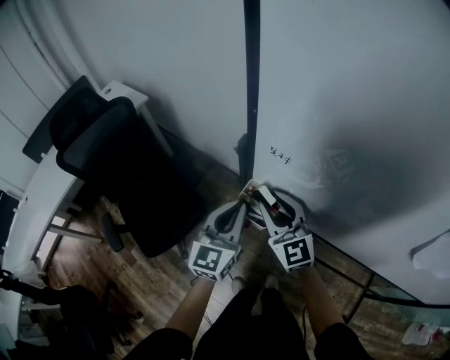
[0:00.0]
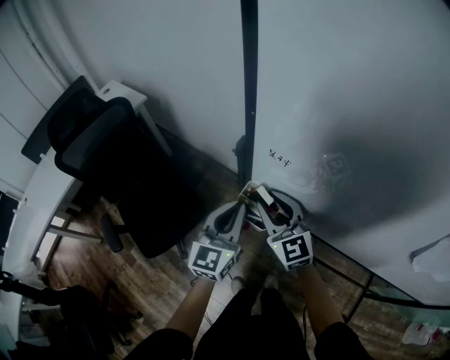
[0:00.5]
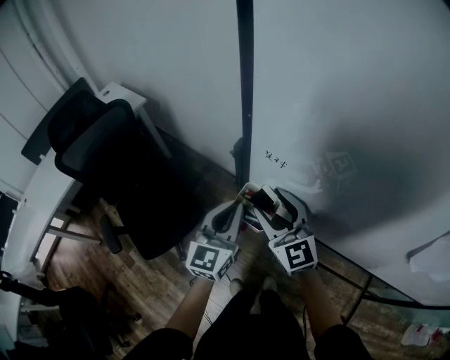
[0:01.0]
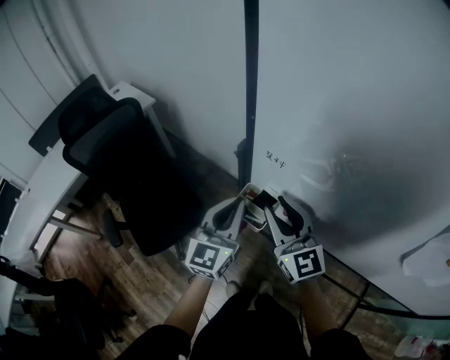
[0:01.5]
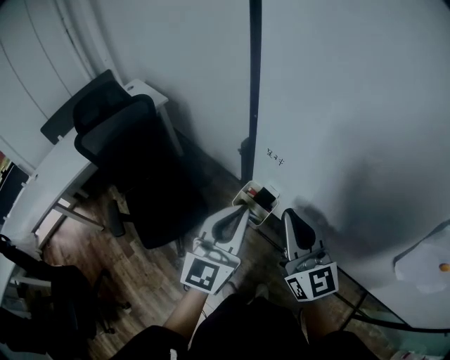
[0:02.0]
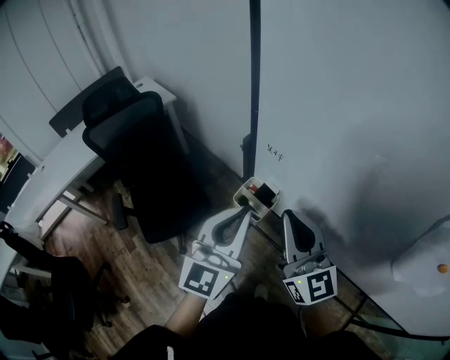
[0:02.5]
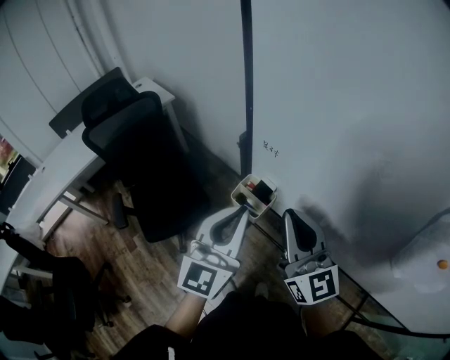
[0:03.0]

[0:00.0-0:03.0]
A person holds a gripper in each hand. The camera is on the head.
0.0 to 1.5 s: The right gripper shifts about 5 cm upward, and opens and closes again.
1.5 to 3.0 s: The grippers both shift backward and upward by approximately 10 cm. The right gripper closes up.

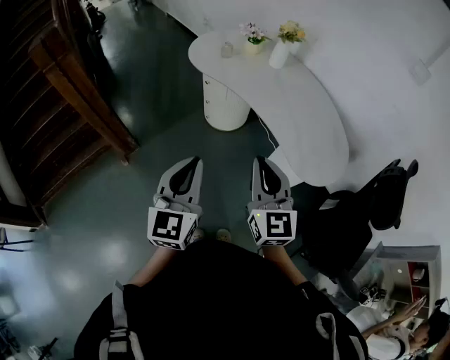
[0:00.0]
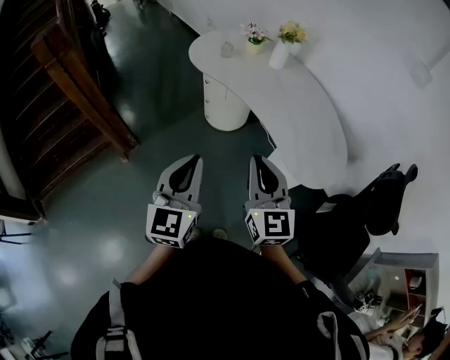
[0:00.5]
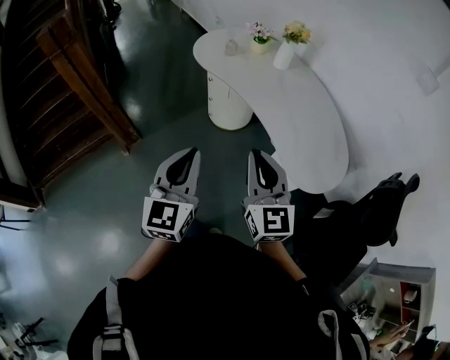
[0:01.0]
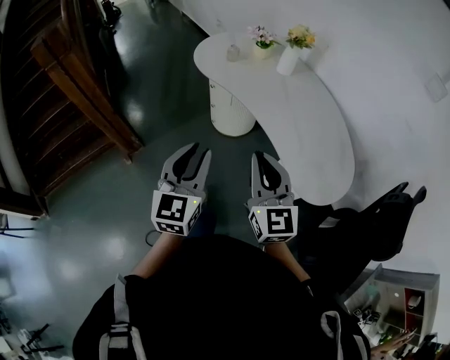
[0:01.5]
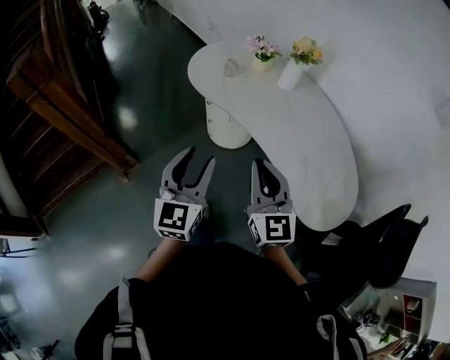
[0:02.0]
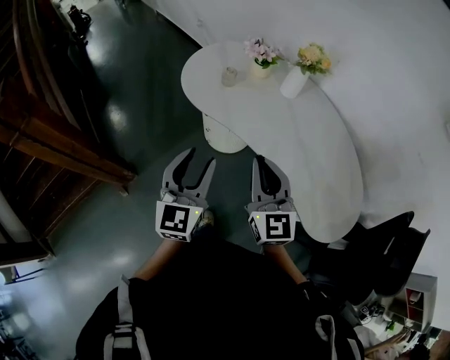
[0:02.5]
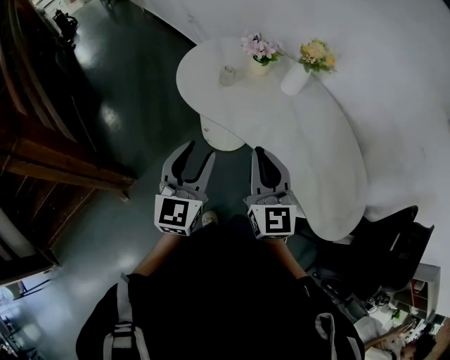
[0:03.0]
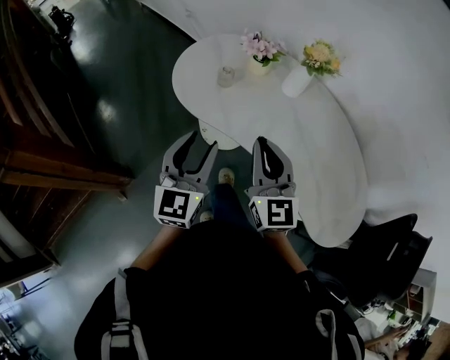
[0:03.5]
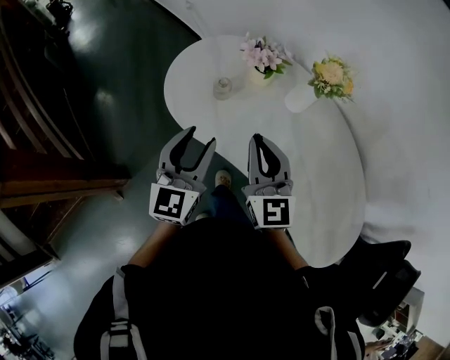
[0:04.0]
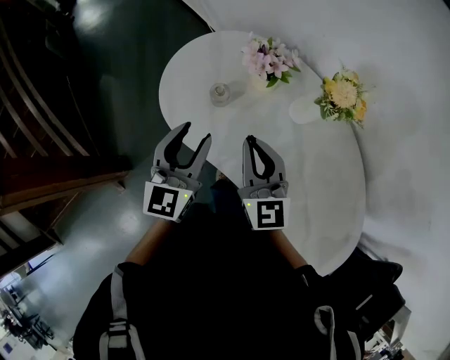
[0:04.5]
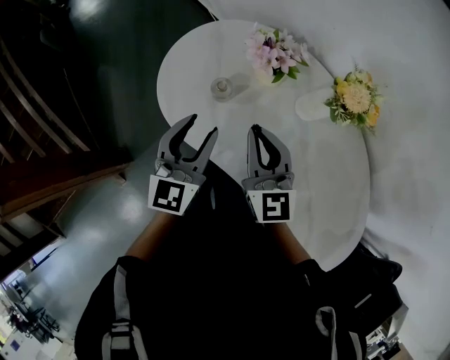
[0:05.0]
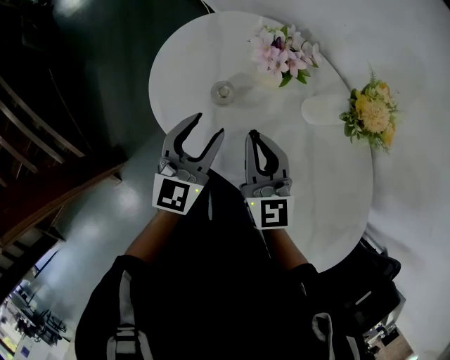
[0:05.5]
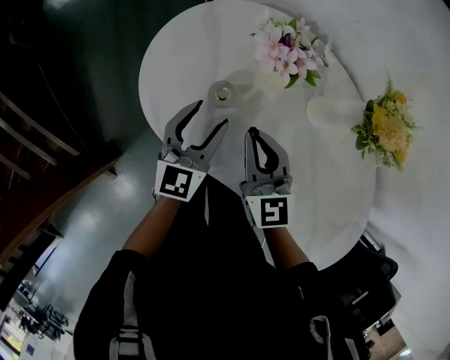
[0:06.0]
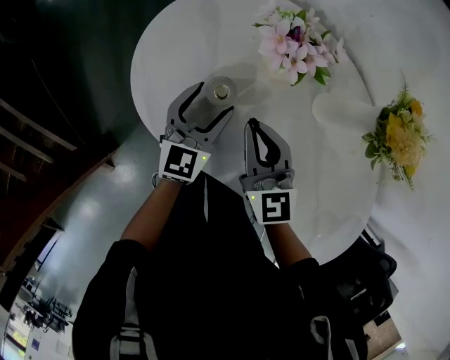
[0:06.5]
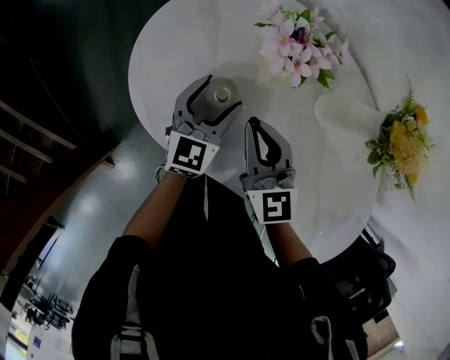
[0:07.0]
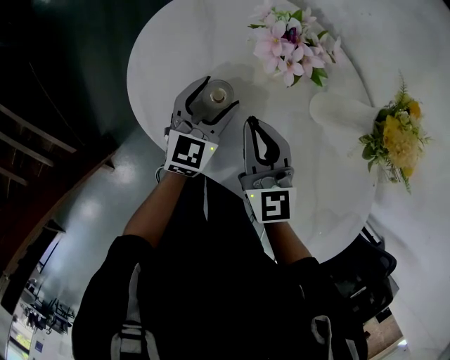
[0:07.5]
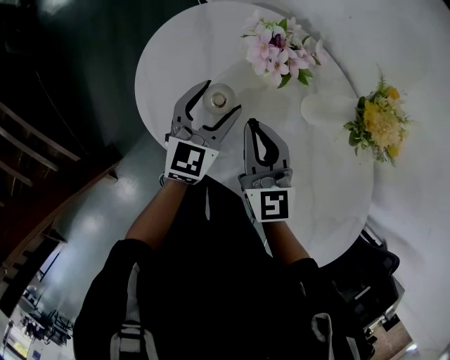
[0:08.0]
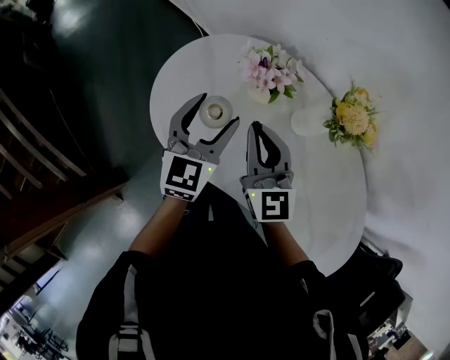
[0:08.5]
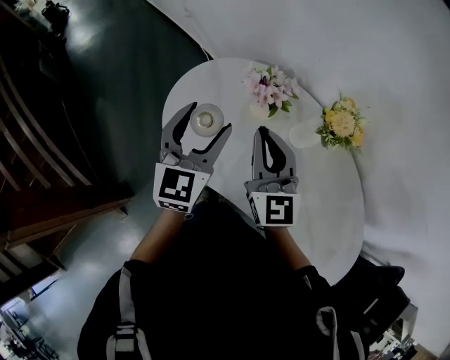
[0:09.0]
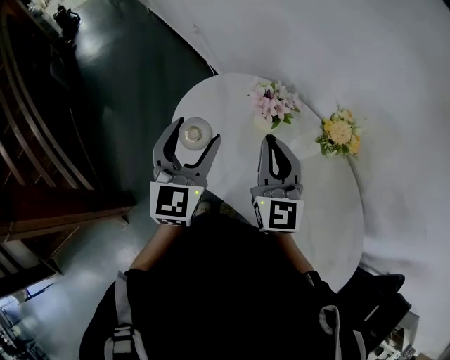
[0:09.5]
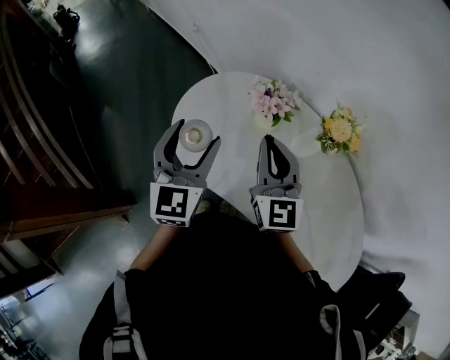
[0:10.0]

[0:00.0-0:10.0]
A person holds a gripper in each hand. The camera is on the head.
0.0 to 2.0 s: The two grippers go about 20 cm forward. The left gripper opens.
2.0 to 4.0 s: The grippers both shift forward by some 35 cm.
4.0 to 6.0 s: Both grippers move forward and downward, some 25 cm.
6.0 to 8.0 s: The left gripper travels forward by approximately 5 cm.
8.0 to 10.0 s: The left gripper shifts approximately 25 cm upward, backward and to the left; the right gripper travels upward by about 15 cm.

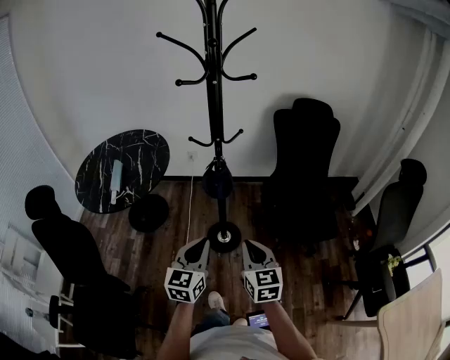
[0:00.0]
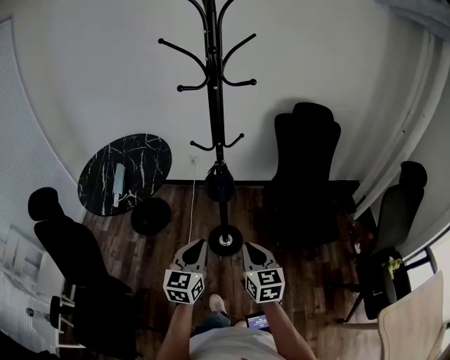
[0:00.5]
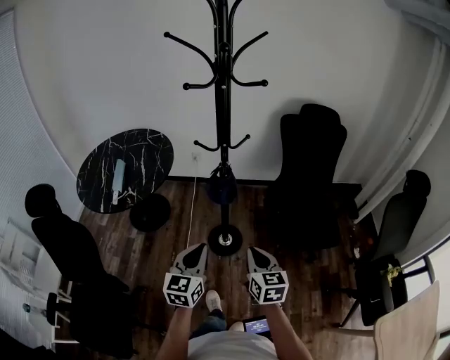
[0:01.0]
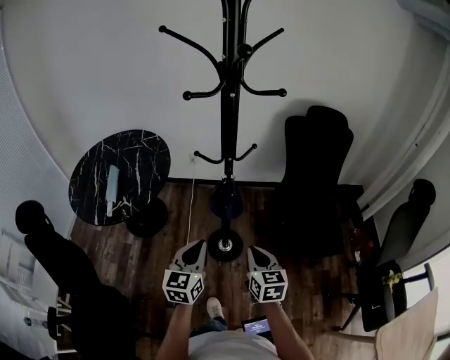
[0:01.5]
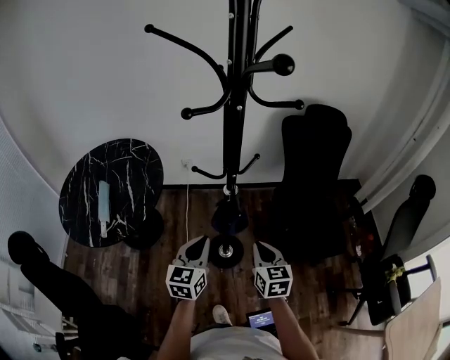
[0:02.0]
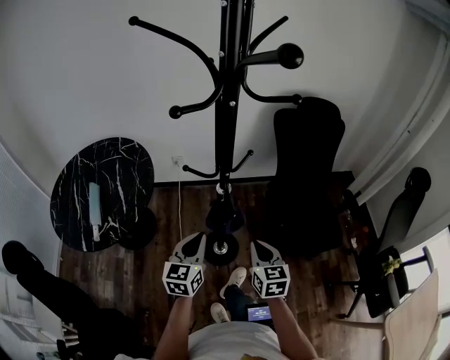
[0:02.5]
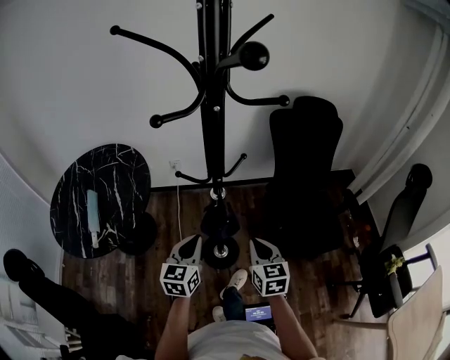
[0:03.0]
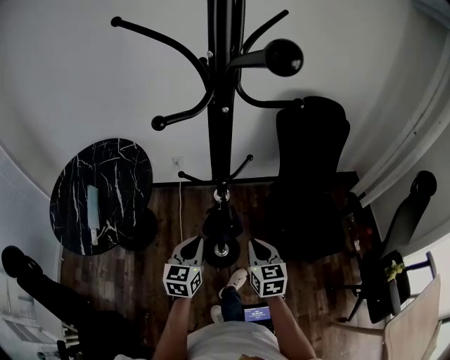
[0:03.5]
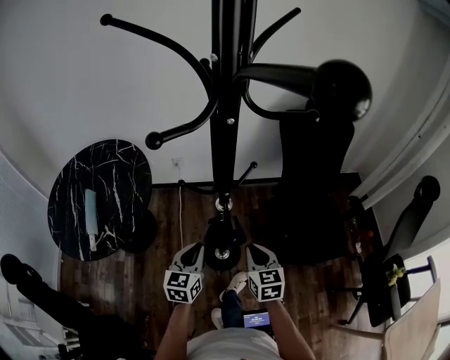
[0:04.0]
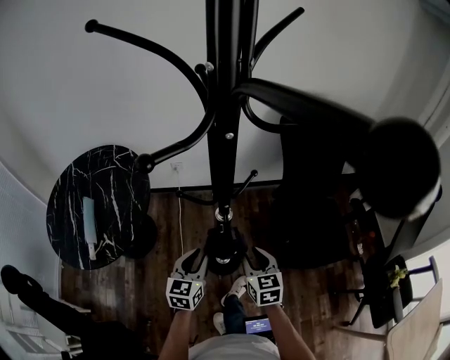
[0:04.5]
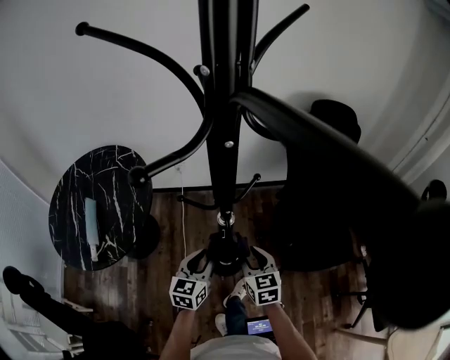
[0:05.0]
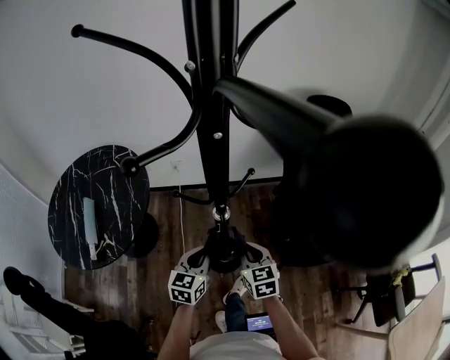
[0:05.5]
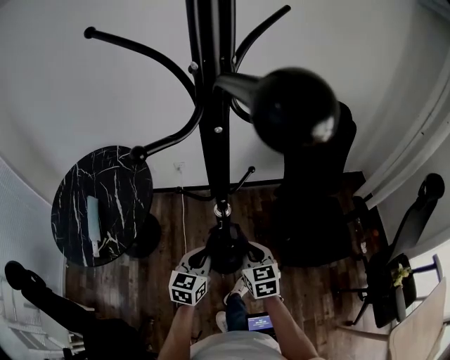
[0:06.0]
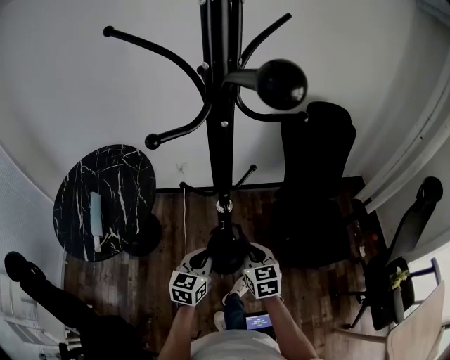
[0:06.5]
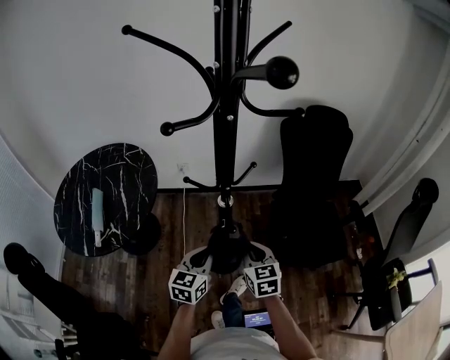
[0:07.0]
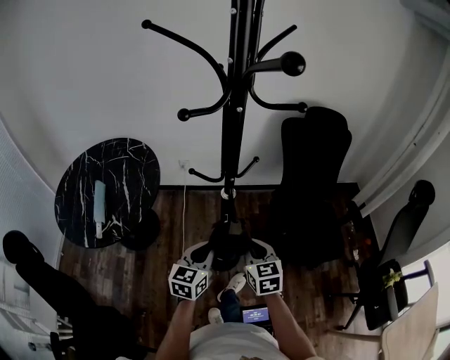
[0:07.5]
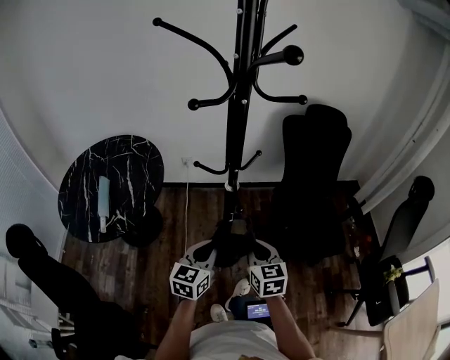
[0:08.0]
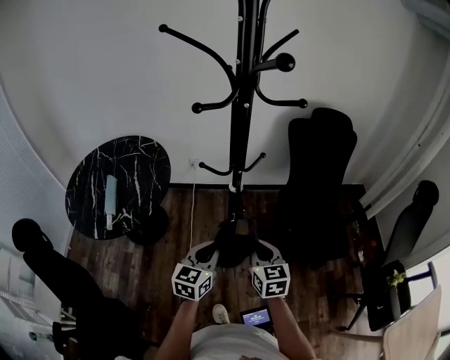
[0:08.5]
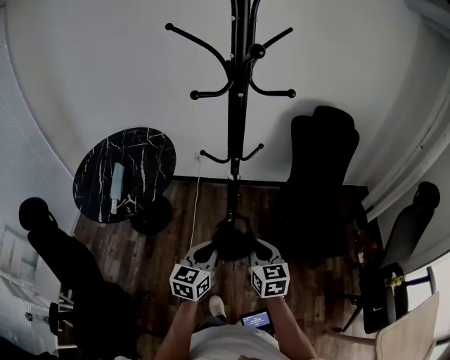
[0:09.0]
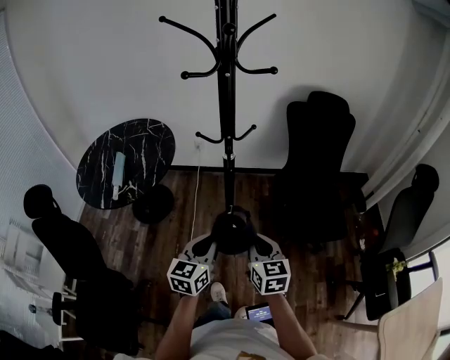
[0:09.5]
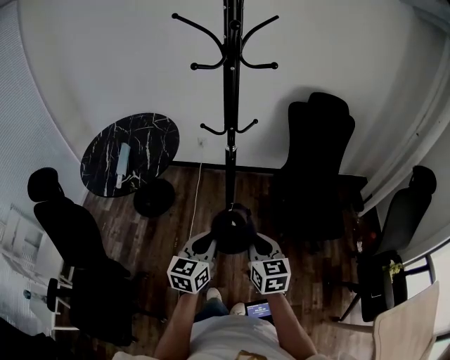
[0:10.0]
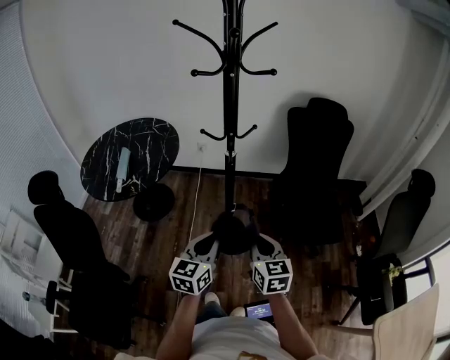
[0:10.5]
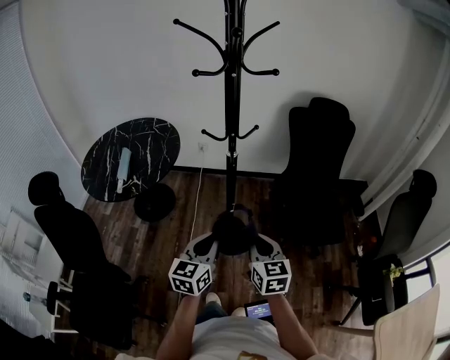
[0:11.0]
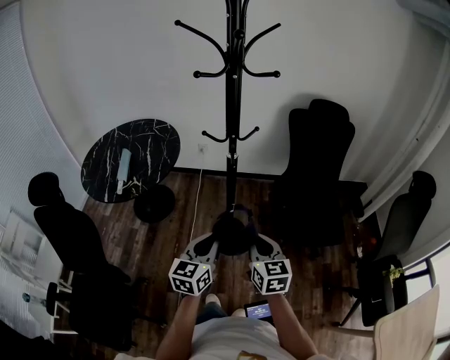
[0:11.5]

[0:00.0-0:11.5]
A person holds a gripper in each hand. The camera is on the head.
0.0 to 2.0 s: Both grippers travel together forward, about 20 cm.
2.0 to 4.0 s: The right gripper goes about 5 cm forward, while the left gripper goes approximately 10 cm downward and forward.
4.0 to 6.0 s: The left gripper opens, then closes once more. Meanwhile the right gripper opens, then closes again.
6.0 to 7.5 s: Both grippers travel together backward, some 5 cm.
7.5 to 9.5 s: Both grippers move backward, about 15 cm.
9.5 to 11.5 s: There are only small adjustments of the grippers.

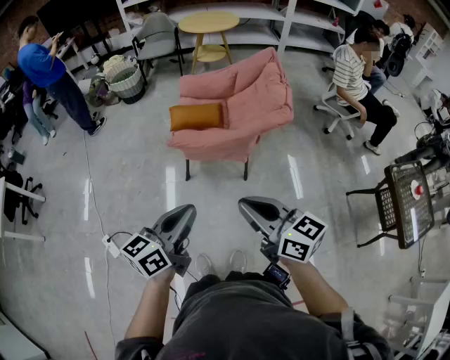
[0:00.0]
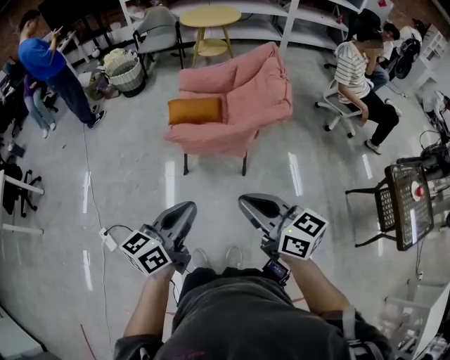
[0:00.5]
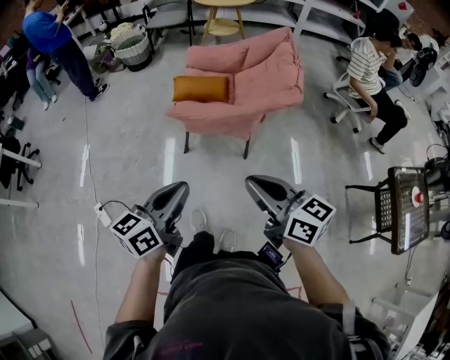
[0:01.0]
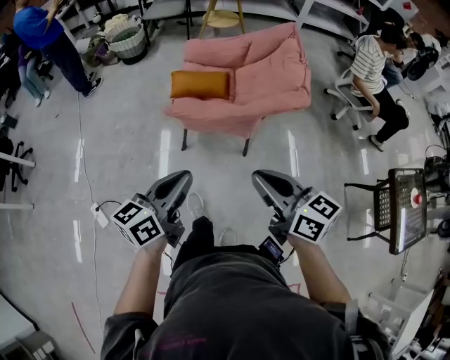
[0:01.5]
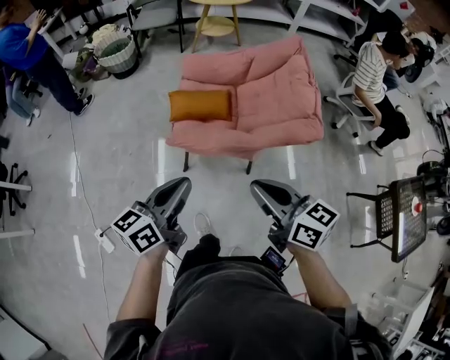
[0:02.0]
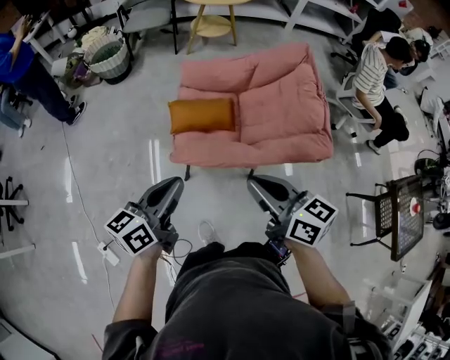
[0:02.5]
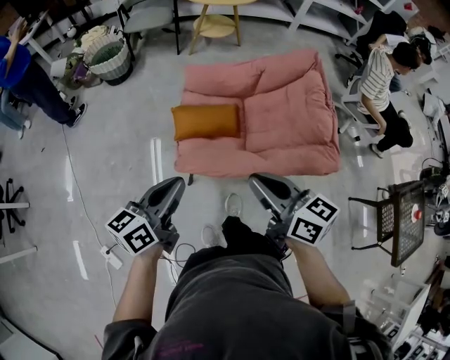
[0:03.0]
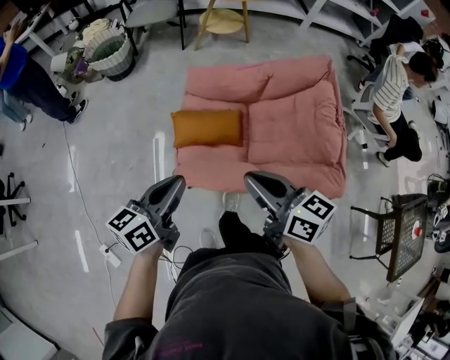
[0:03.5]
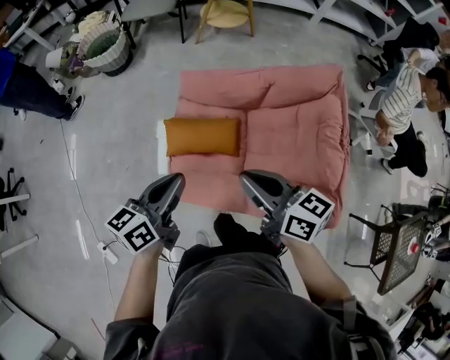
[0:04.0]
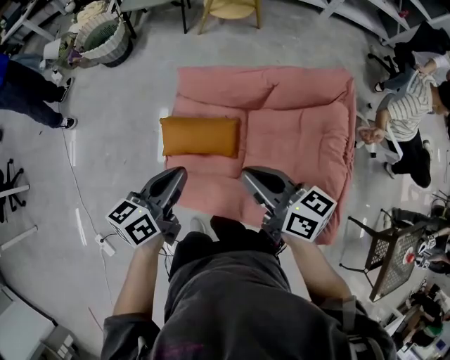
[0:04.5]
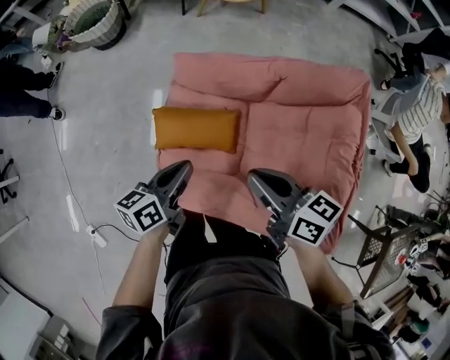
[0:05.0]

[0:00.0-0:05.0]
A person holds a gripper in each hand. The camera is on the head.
0.0 to 2.5 s: The two grippers go about 35 cm forward.
2.5 to 5.0 s: The right gripper moves forward, about 35 cm. Meanwhile the left gripper is displaced forward and downward by some 40 cm, and turns by approximately 20 degrees.
